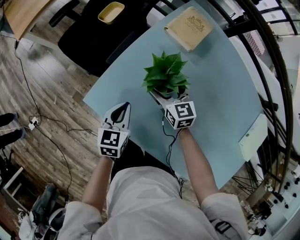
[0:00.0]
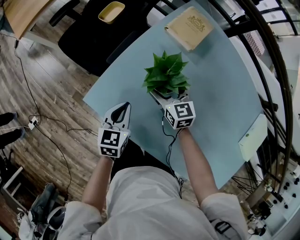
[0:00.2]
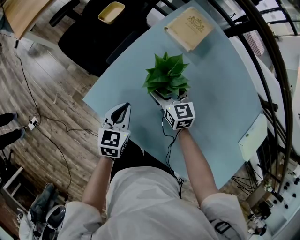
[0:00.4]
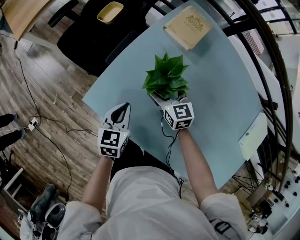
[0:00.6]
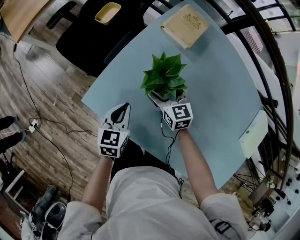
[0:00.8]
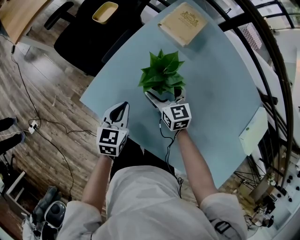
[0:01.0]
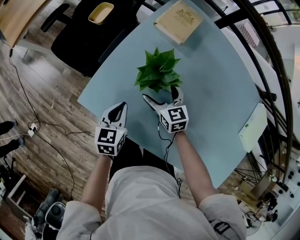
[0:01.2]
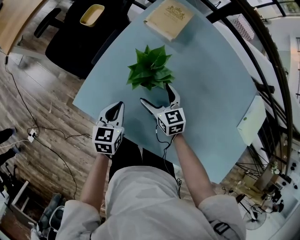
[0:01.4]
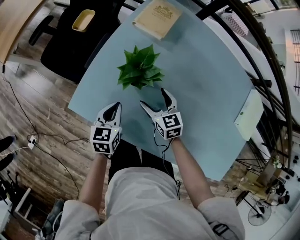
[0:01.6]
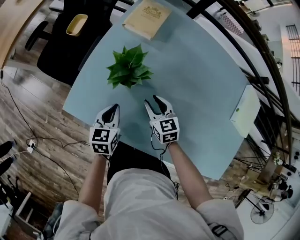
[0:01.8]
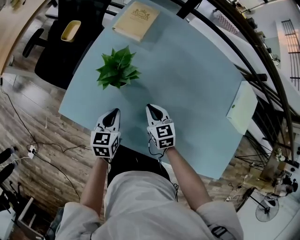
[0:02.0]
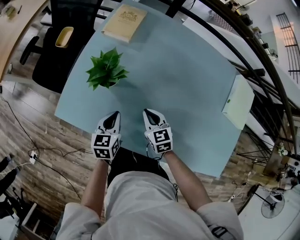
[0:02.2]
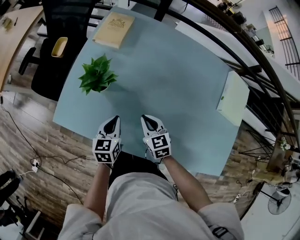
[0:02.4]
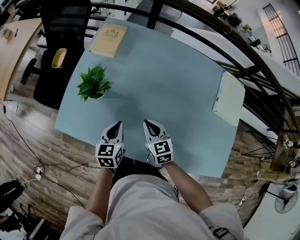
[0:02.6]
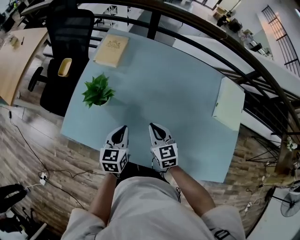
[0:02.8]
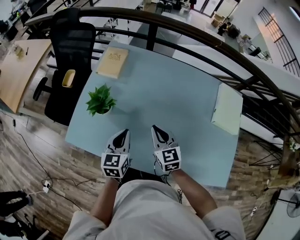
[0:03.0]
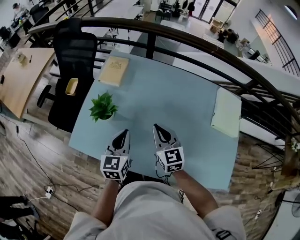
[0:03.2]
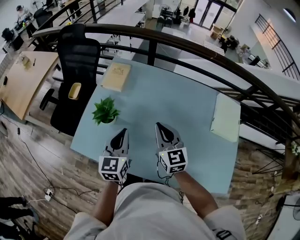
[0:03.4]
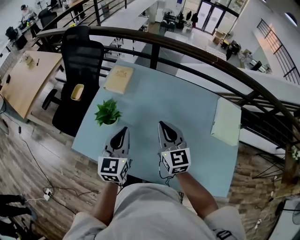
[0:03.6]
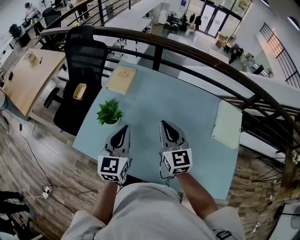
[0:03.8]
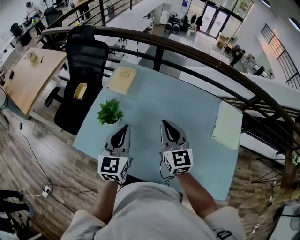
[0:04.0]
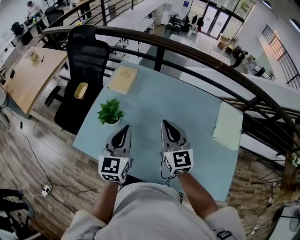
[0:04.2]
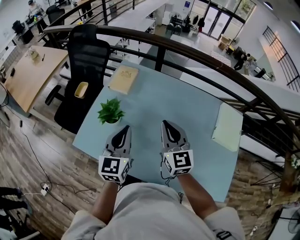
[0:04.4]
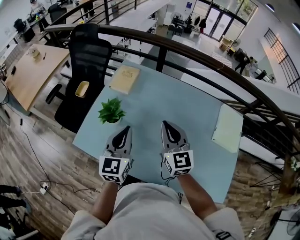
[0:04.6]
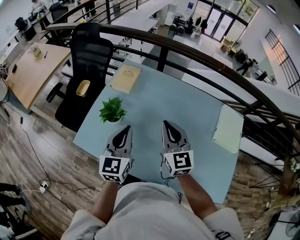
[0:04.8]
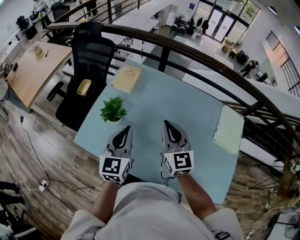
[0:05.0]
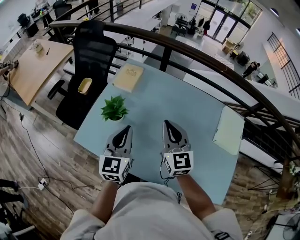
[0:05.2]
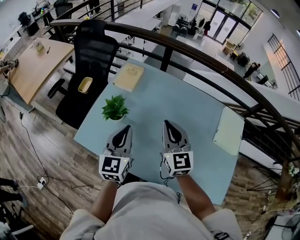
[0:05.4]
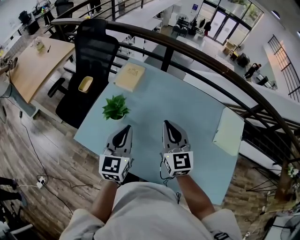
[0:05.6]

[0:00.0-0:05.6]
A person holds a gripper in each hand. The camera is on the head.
0.0 to 1.4 s: The right gripper travels backward by roughly 5 cm.
1.4 to 2.8 s: The left gripper goes approximately 20 cm to the right and upward. Meanwhile the right gripper moves to the right, backward and upward, roughly 25 cm, and closes.
2.8 to 4.2 s: The grippers both shift upward by roughly 20 cm. The right gripper turns by about 20 degrees. The left gripper rotates some 20 degrees.
4.2 to 5.6 s: There are only small adjustments of the grippers.

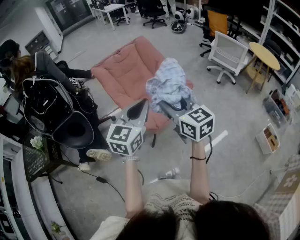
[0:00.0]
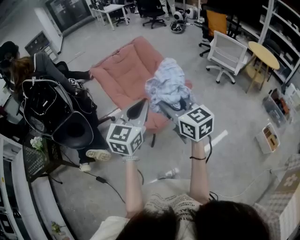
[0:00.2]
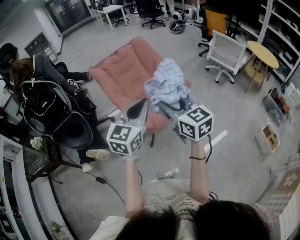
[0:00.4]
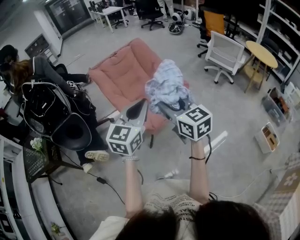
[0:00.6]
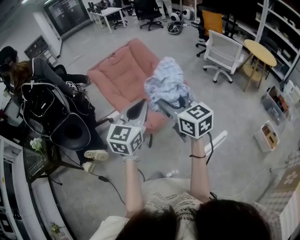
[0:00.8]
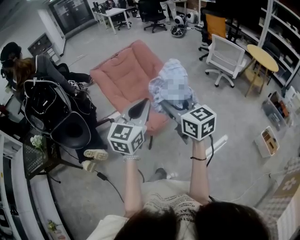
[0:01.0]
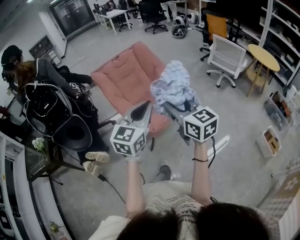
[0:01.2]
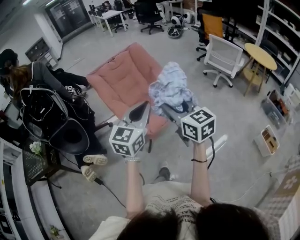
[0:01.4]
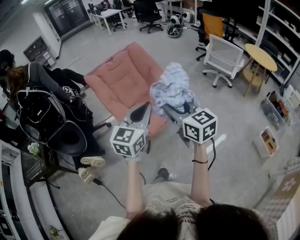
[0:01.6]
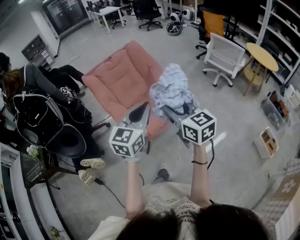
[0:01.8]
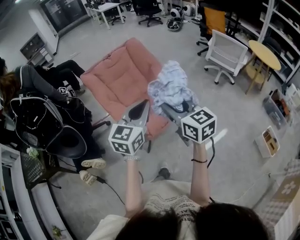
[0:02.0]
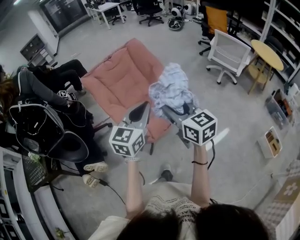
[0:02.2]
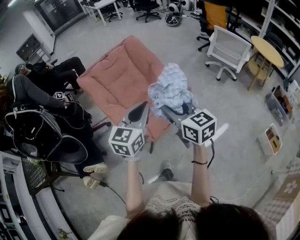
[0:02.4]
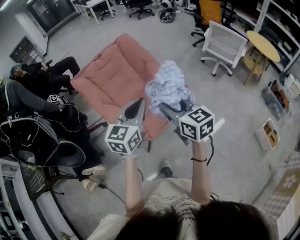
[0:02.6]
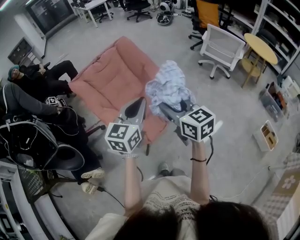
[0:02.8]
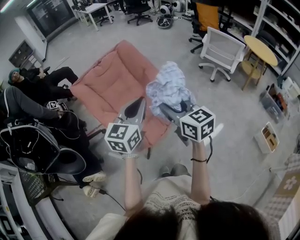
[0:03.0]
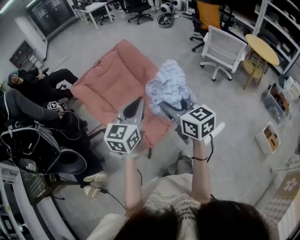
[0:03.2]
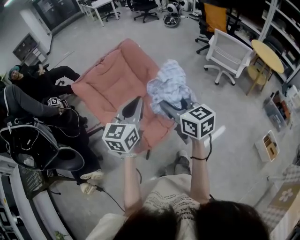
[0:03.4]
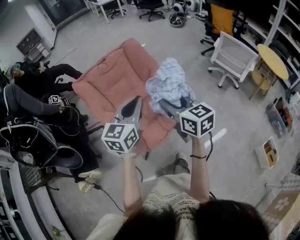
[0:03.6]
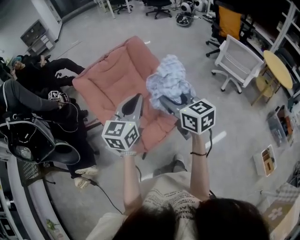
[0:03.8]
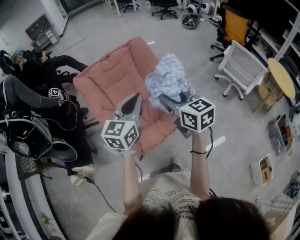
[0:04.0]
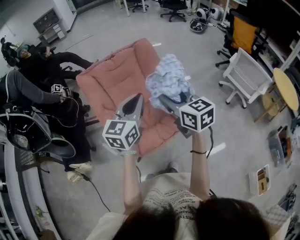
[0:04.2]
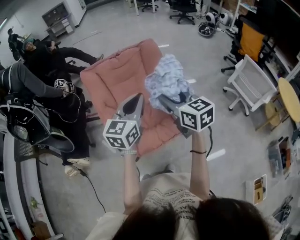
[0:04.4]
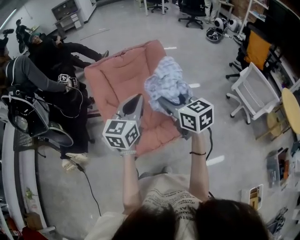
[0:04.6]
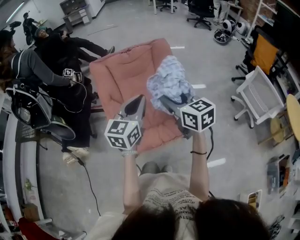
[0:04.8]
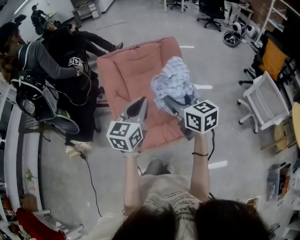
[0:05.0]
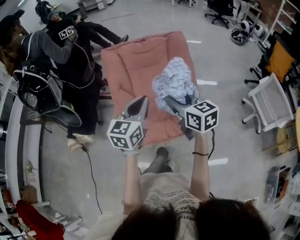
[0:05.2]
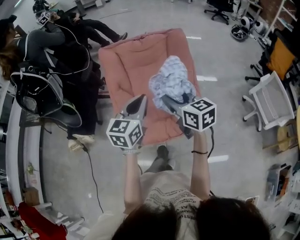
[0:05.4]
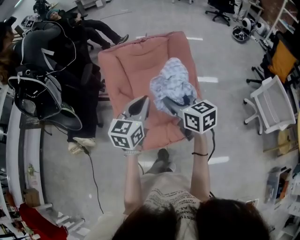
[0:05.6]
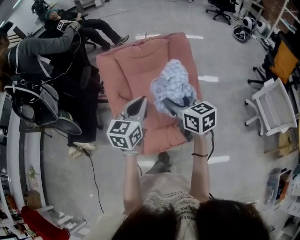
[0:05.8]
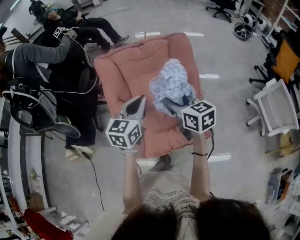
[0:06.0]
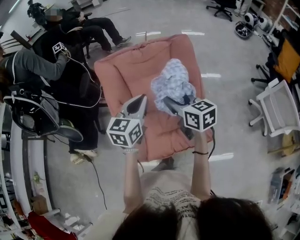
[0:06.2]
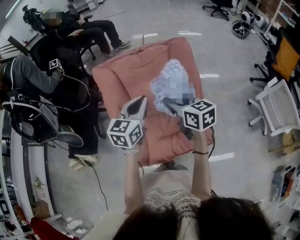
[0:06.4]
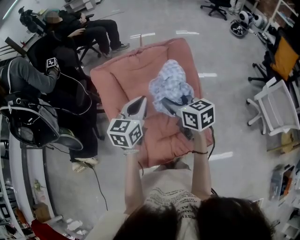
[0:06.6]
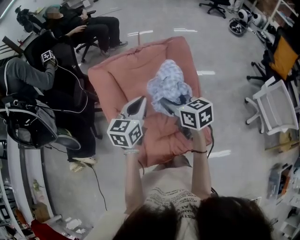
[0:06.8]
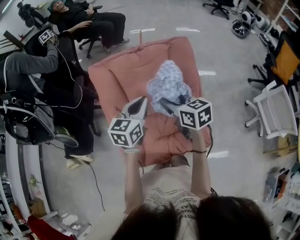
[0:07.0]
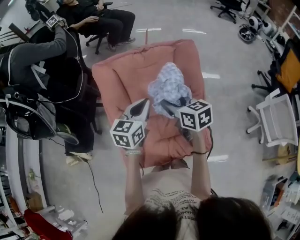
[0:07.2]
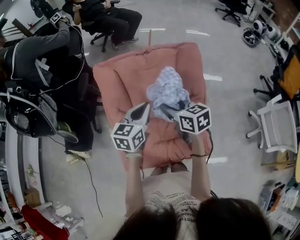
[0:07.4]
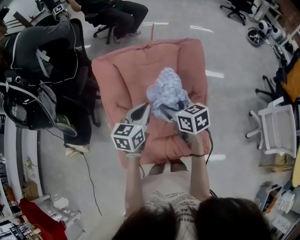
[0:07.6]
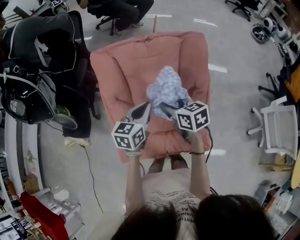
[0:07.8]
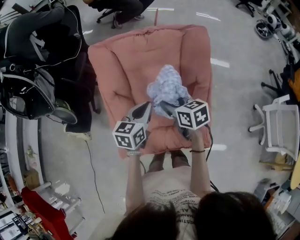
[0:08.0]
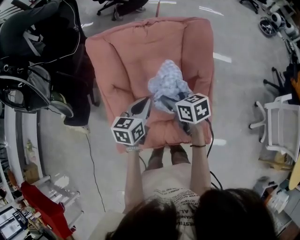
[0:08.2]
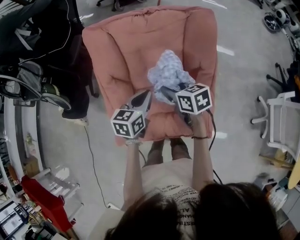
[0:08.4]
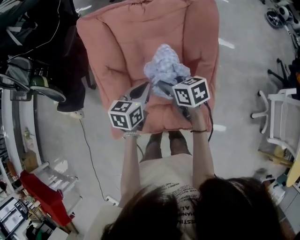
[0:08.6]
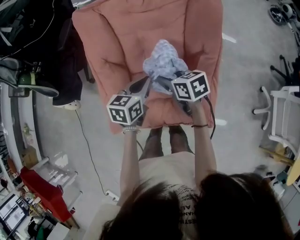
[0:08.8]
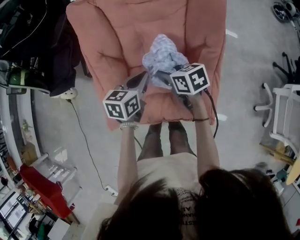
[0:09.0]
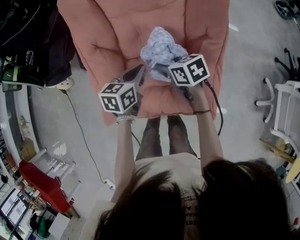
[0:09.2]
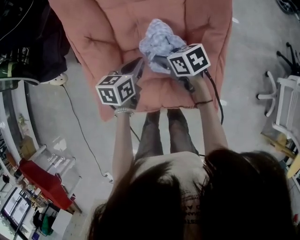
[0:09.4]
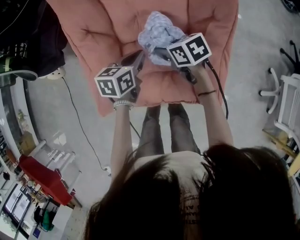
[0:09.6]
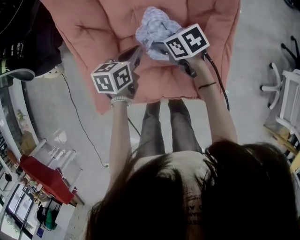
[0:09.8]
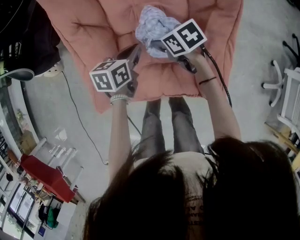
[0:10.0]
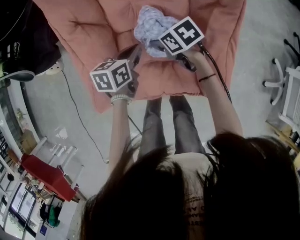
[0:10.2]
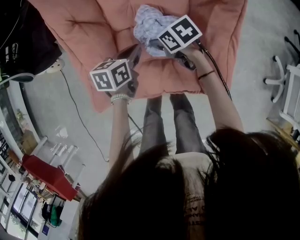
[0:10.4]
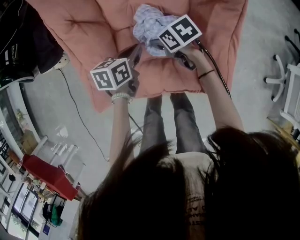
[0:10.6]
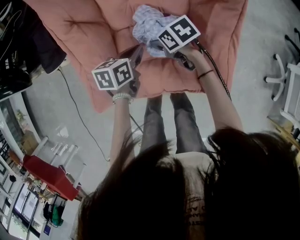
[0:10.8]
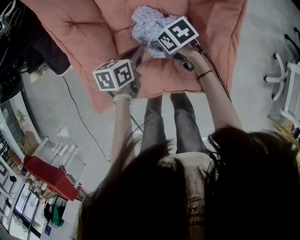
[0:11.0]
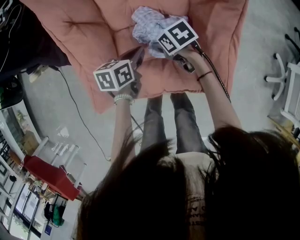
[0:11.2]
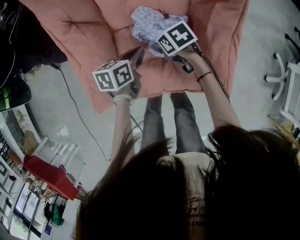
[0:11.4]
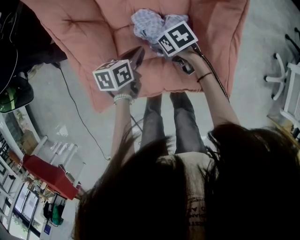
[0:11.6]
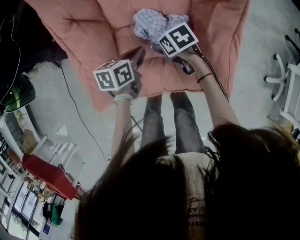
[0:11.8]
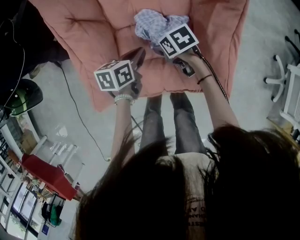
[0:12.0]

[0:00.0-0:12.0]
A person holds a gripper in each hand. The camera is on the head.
0.0 to 1.6 s: Both grippers move to the right, roughly 10 cm.
1.6 to 3.0 s: Both grippers move forward, approximately 20 cm.
3.0 to 4.4 s: Both grippers move forward, approximately 15 cm. The left gripper rotates some 20 degrees. Meanwhile the right gripper rotates about 20 degrees.
4.4 to 6.0 s: Both grippers move forward and downward, about 15 cm.
6.0 to 7.6 s: The two grippers go roughly 15 cm forward and downward.
7.6 to 9.0 s: Both grippers move downward, approximately 20 cm.
9.0 to 10.4 s: The two grippers go roughly 15 cm downward.
10.4 to 12.0 s: The right gripper ends up roughly 5 cm from where it was, and opens.

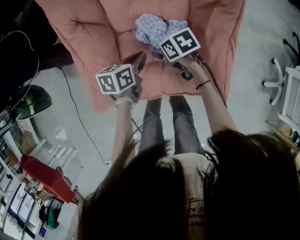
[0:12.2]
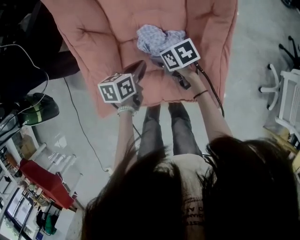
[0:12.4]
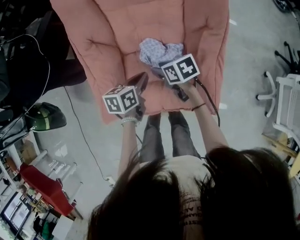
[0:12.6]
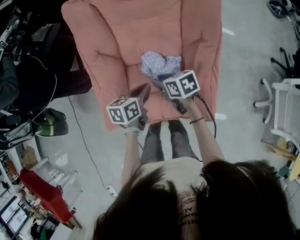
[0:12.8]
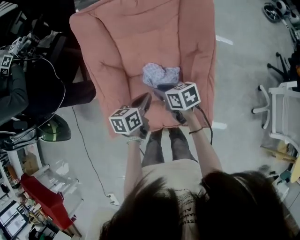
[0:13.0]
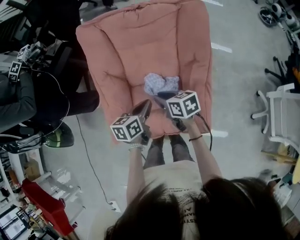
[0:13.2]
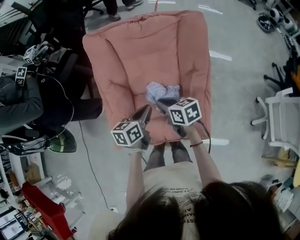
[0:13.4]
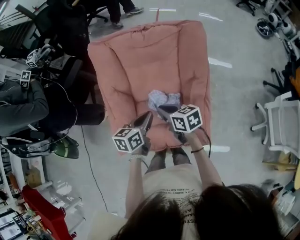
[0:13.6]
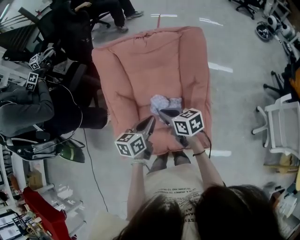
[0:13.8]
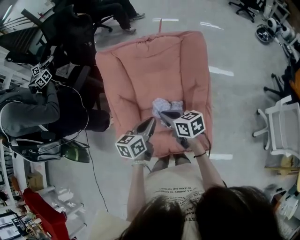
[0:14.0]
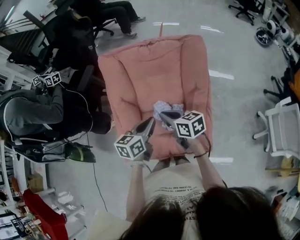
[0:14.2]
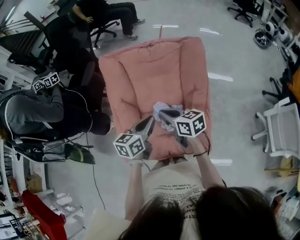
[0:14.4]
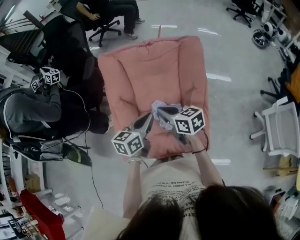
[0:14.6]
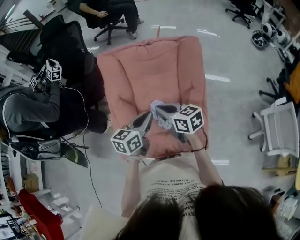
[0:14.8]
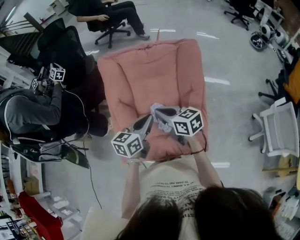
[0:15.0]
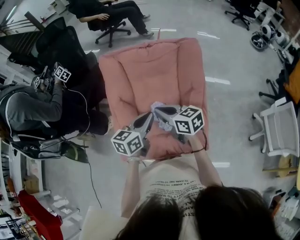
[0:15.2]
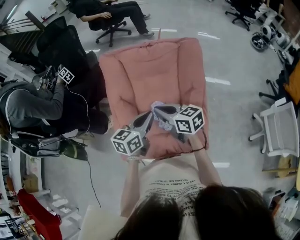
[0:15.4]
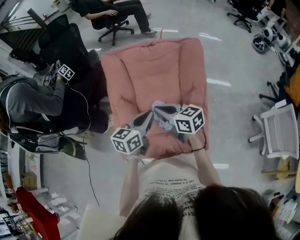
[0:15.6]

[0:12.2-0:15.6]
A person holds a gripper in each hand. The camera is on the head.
12.2 to 13.8 s: Both grippers travel together upward, roughly 25 cm. The right gripper turns by about 30 degrees, and closes its fingers, while the left gripper rotates some 20 degrees.
13.8 to 15.6 s: Both grippers travel together upward, approximately 10 cm.

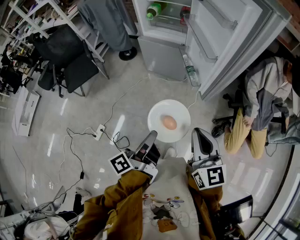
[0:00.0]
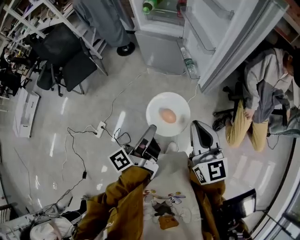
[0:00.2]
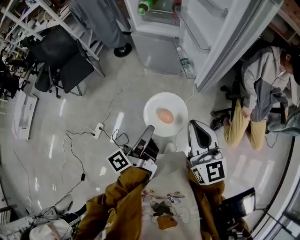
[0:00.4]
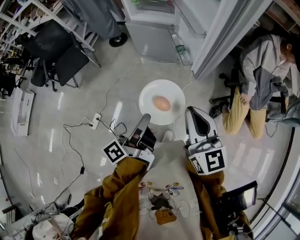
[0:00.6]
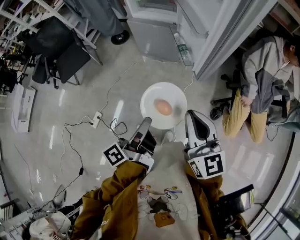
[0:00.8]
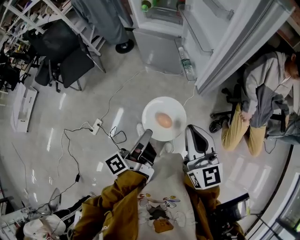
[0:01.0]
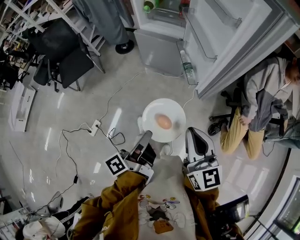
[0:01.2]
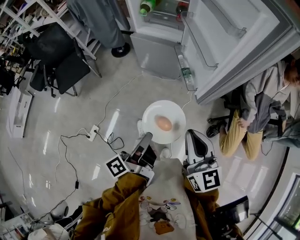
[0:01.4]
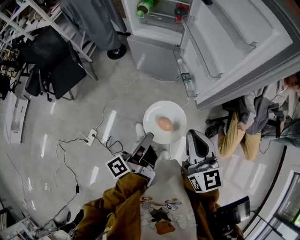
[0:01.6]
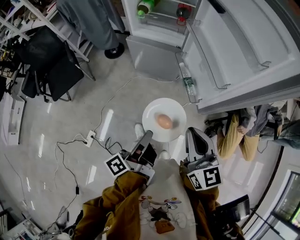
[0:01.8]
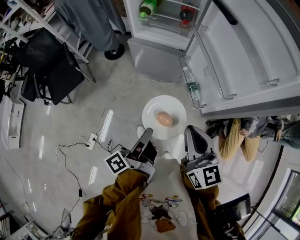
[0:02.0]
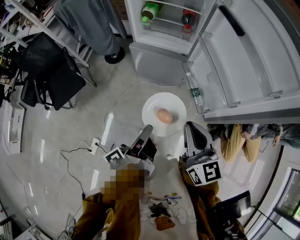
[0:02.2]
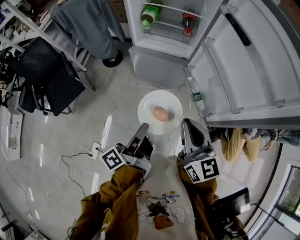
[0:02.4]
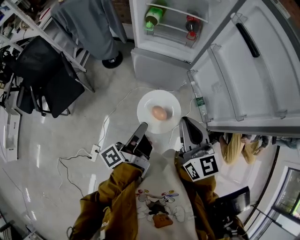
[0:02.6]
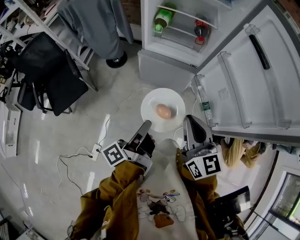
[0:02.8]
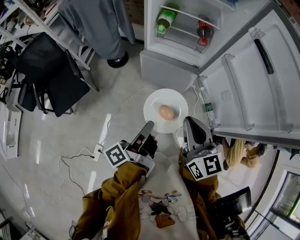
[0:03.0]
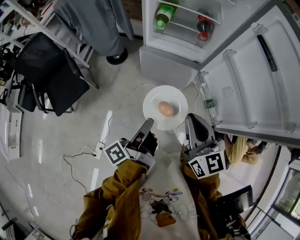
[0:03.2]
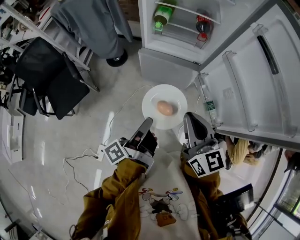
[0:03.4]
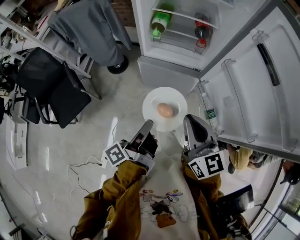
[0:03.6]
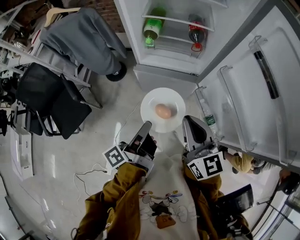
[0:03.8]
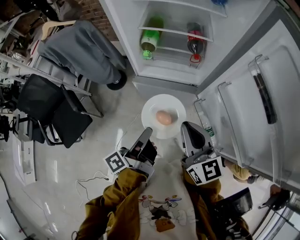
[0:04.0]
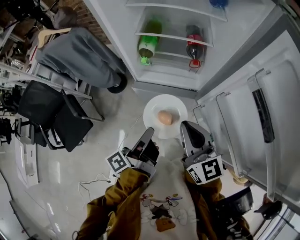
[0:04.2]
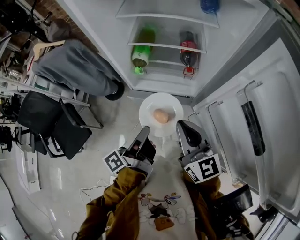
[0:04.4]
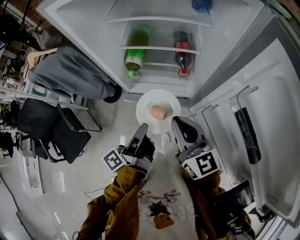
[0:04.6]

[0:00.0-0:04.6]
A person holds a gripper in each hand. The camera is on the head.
0.0 to 1.6 s: The right gripper moves approximately 10 cm.
1.6 to 3.0 s: The right gripper moves roughly 30 cm.
3.0 to 4.6 s: The right gripper moves some 30 cm.
